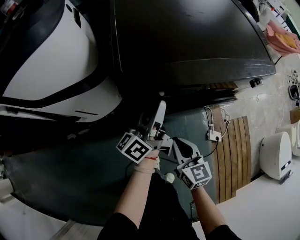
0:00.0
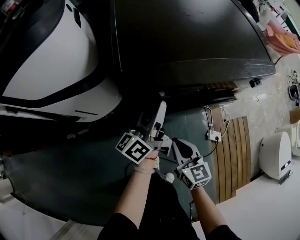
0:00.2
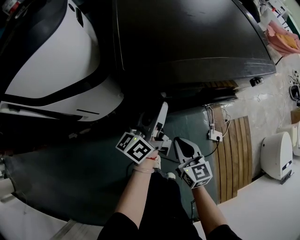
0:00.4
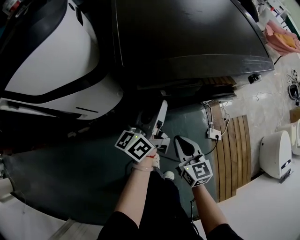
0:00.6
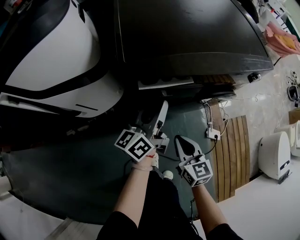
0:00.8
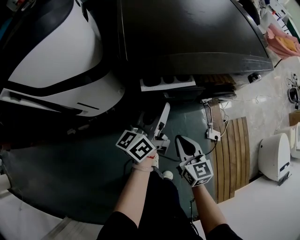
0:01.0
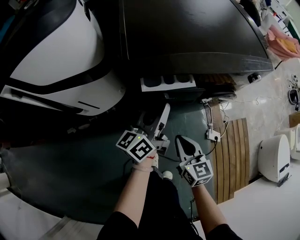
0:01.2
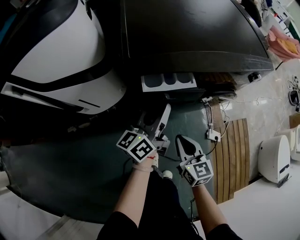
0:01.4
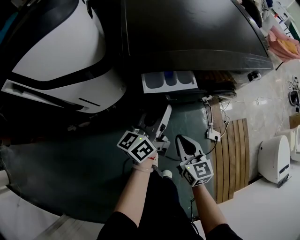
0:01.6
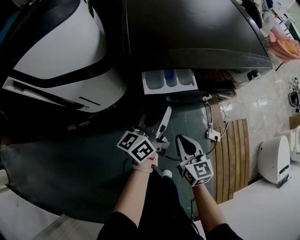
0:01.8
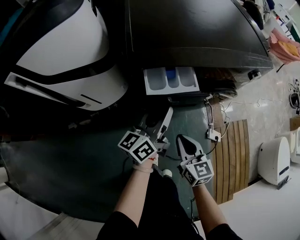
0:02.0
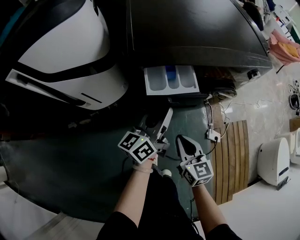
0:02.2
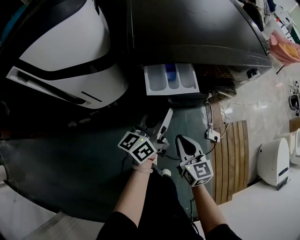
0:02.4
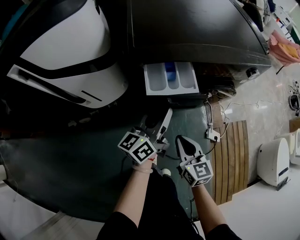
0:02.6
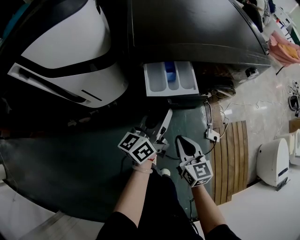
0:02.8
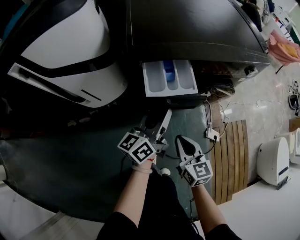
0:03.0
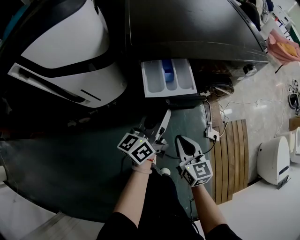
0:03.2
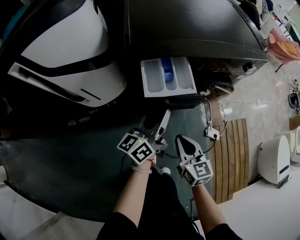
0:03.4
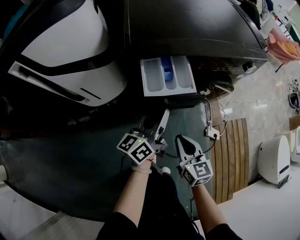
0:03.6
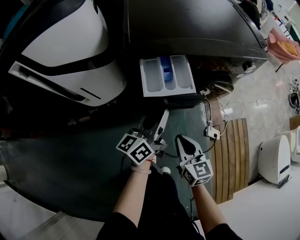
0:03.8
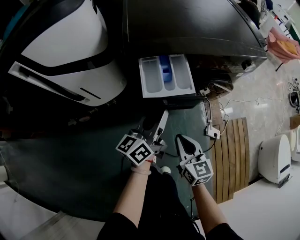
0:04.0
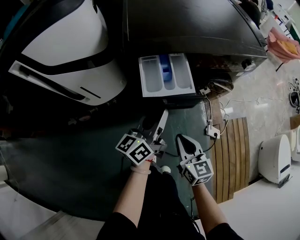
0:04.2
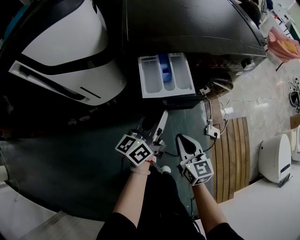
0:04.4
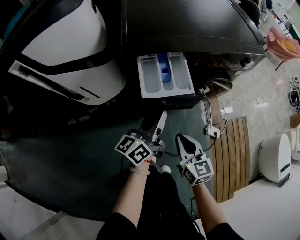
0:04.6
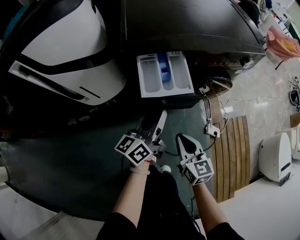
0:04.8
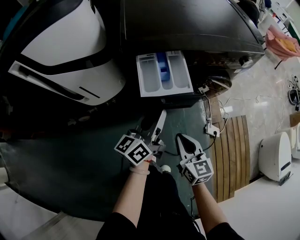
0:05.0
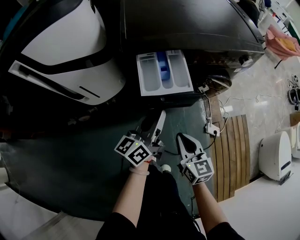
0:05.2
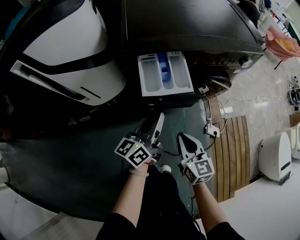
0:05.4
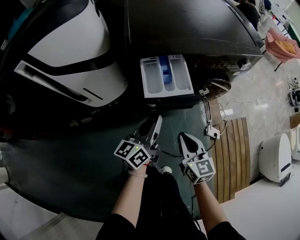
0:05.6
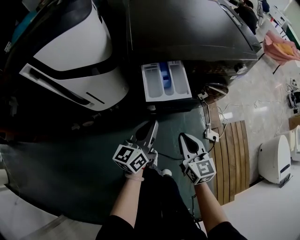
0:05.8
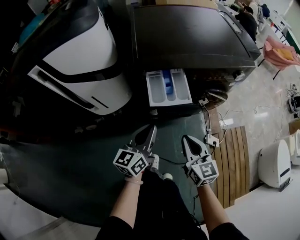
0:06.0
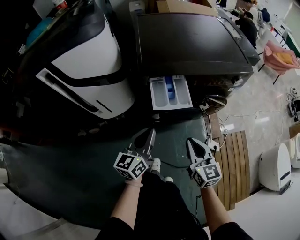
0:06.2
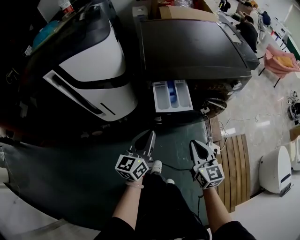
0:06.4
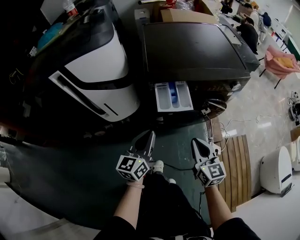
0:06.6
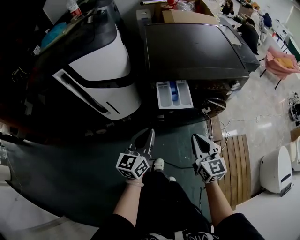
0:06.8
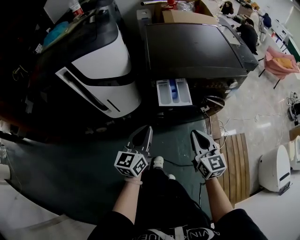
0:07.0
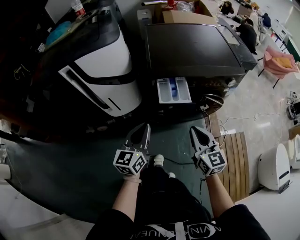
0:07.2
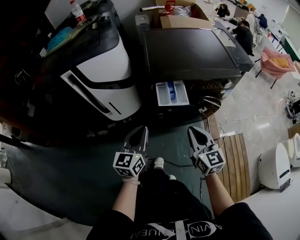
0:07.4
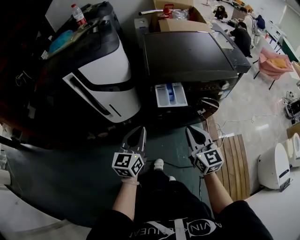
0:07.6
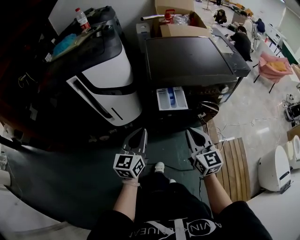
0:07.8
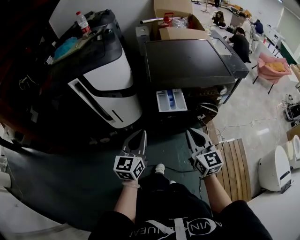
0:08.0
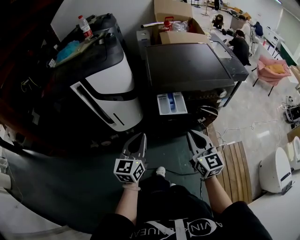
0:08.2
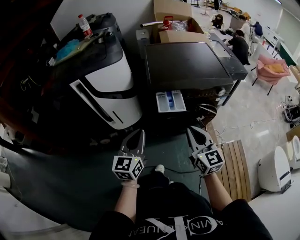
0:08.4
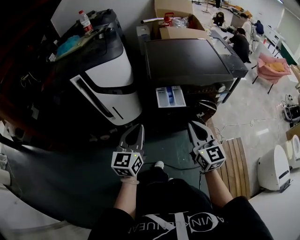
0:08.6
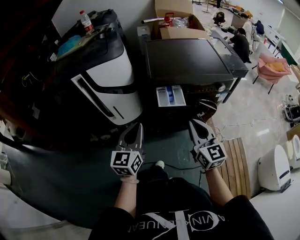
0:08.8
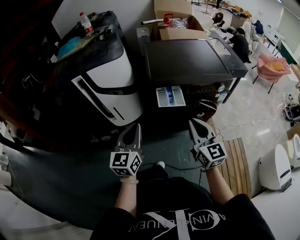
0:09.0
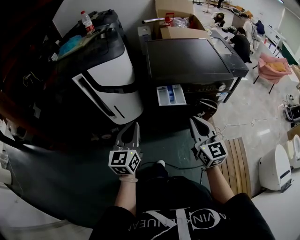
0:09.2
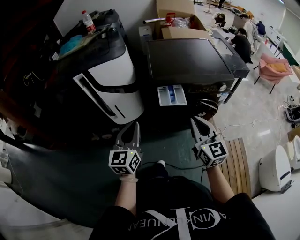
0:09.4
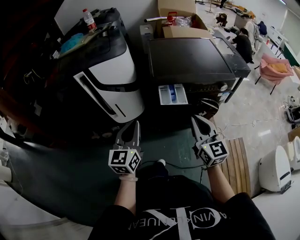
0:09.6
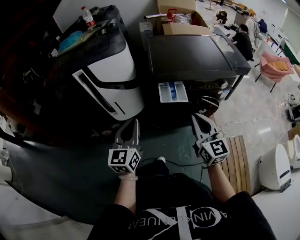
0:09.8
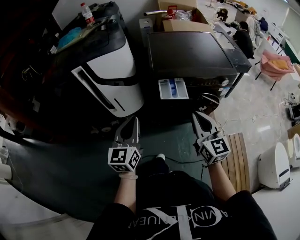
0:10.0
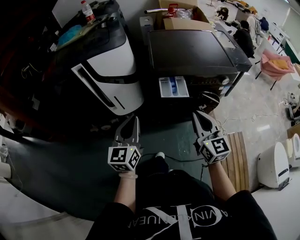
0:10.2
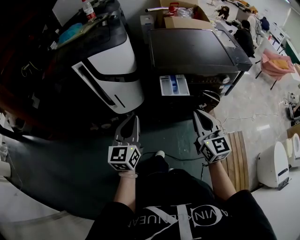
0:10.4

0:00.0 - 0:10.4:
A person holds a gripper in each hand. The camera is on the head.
0:00.0 - 0:01.4: The left gripper shifts some 5 cm backward.
0:01.4 - 0:03.0: The left gripper goes roughly 5 cm backward.
0:03.0 - 0:04.4: The grippers move only a little.
0:04.4 - 0:06.0: The right gripper shifts approximately 10 cm upward, while the left gripper ends up approximately 5 cm from where it was.
0:06.0 - 0:07.4: The right gripper goes about 15 cm upward. Meanwhile the left gripper shifts approximately 15 cm upward, backward and to the left.
0:07.4 - 0:09.0: Both grippers travel together upward, about 10 cm.
0:09.0 - 0:10.4: There are only small adjustments of the grippers.

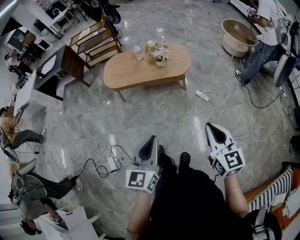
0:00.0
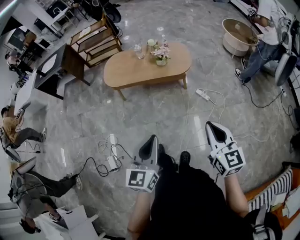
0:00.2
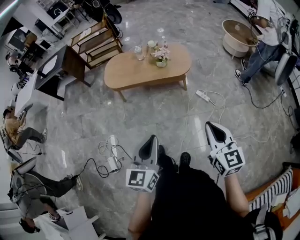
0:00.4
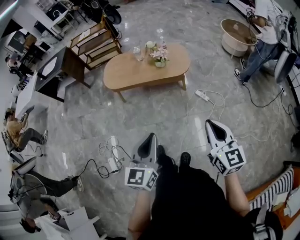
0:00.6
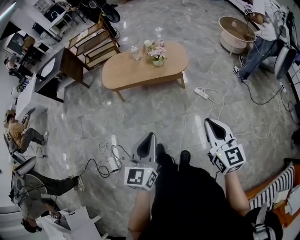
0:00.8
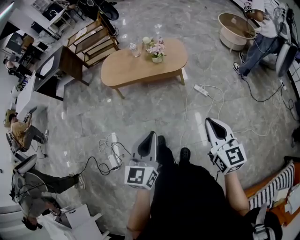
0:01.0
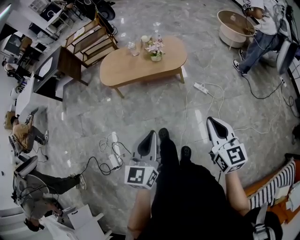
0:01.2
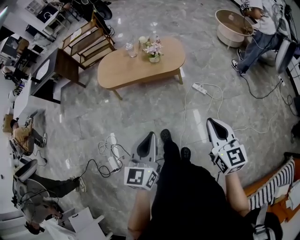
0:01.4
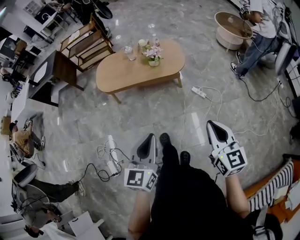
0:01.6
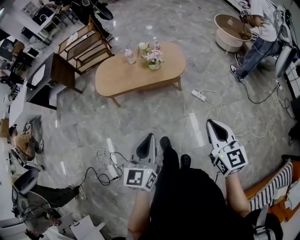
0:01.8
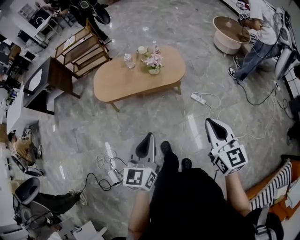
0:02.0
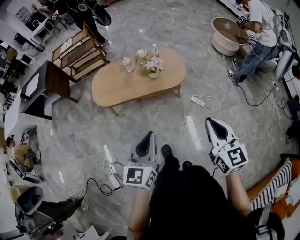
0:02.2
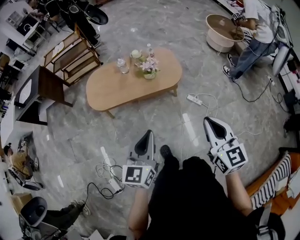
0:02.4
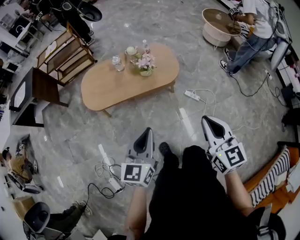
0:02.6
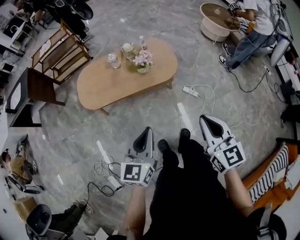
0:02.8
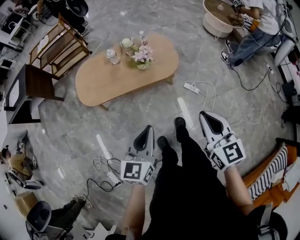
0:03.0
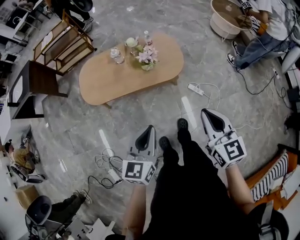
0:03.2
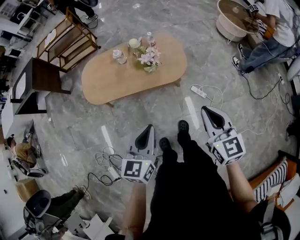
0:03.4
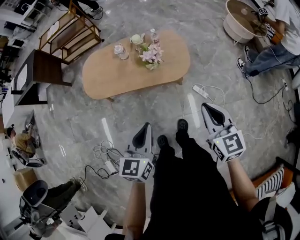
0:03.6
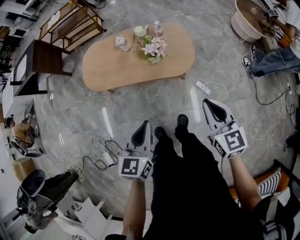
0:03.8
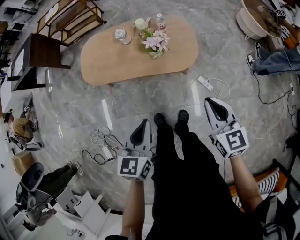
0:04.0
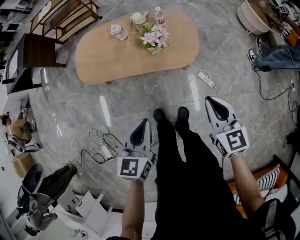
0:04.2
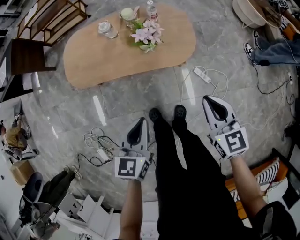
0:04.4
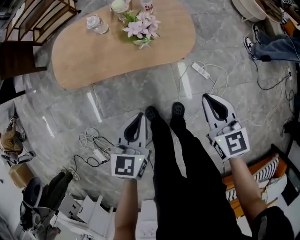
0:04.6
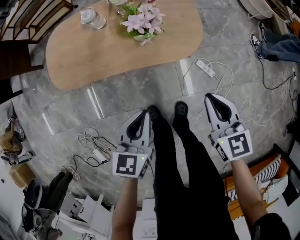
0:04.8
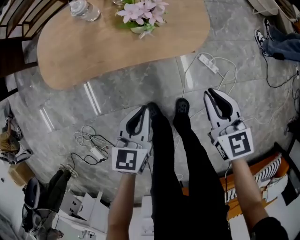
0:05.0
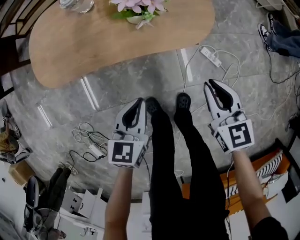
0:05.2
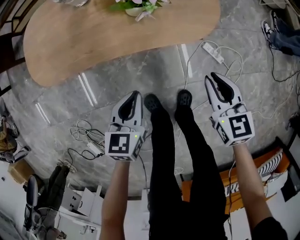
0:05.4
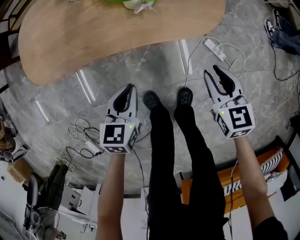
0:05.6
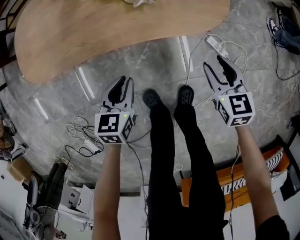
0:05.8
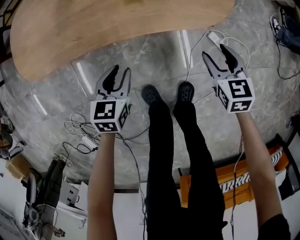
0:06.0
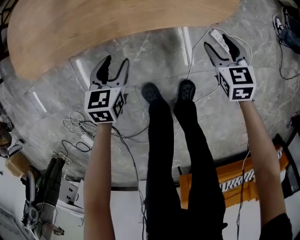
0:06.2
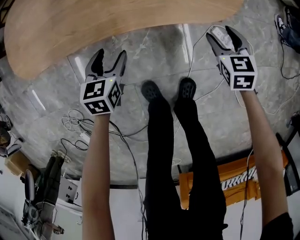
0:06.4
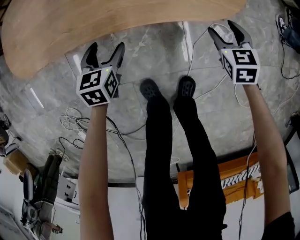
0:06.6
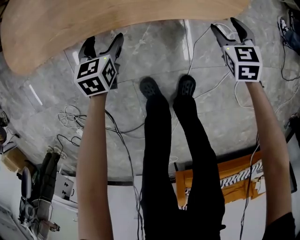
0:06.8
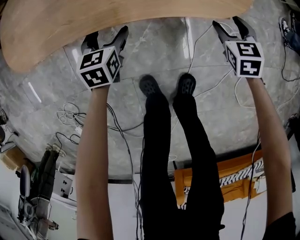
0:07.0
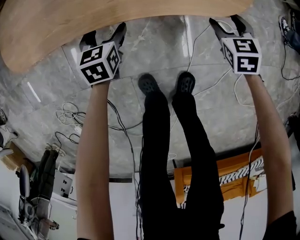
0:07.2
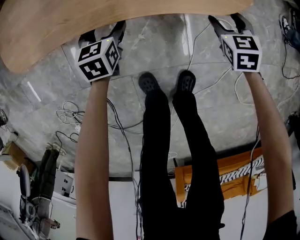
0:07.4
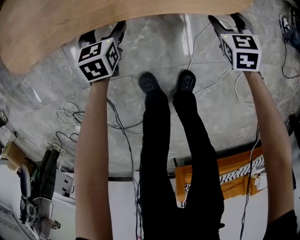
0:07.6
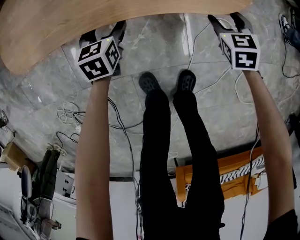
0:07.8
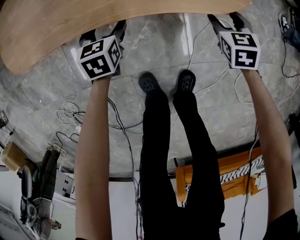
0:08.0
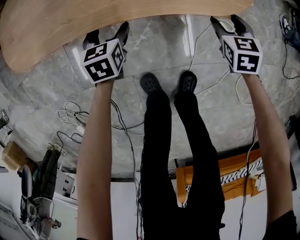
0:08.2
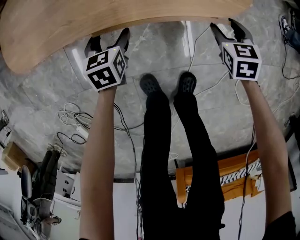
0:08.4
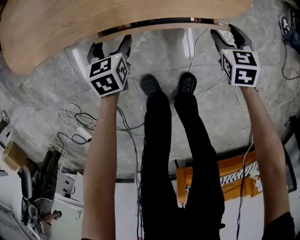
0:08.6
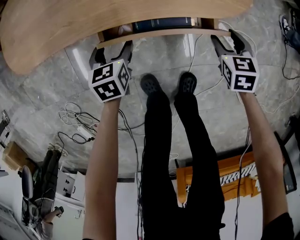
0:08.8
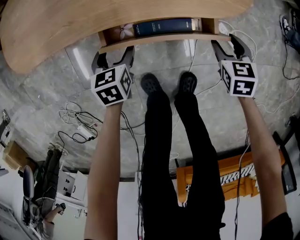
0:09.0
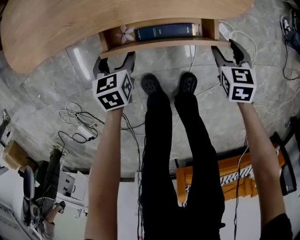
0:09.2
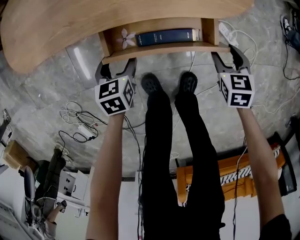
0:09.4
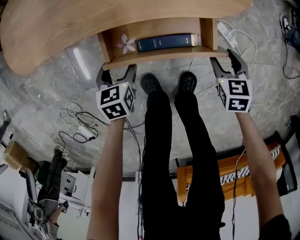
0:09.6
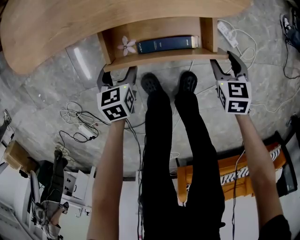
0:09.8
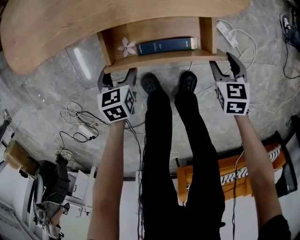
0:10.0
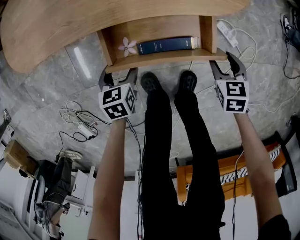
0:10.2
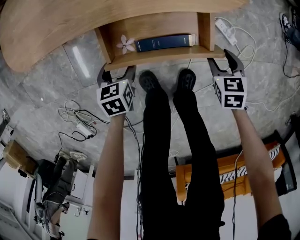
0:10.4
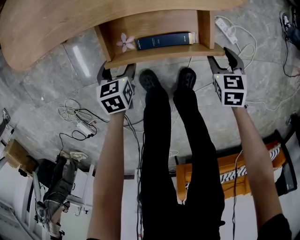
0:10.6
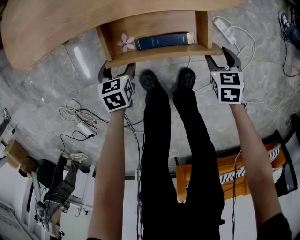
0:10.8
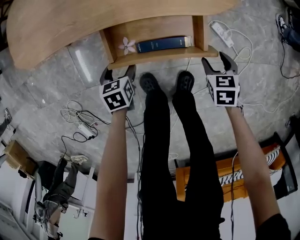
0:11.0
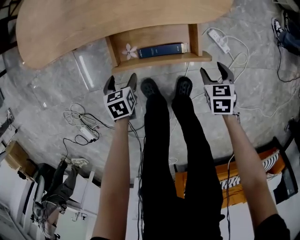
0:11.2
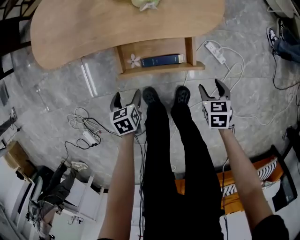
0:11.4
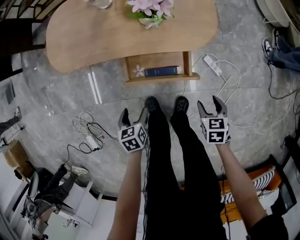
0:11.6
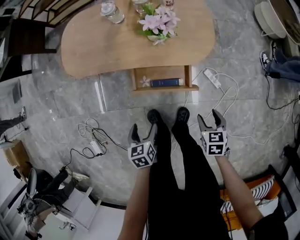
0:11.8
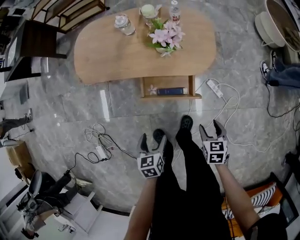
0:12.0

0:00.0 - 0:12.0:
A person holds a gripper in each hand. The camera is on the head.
0:00.0 - 0:01.6: The left gripper shifts some 5 cm forward.
0:01.6 - 0:03.0: The left gripper shifts about 25 cm forward. Meanwhile the right gripper travels forward and to the left by roughly 25 cm.
0:03.0 - 0:04.4: The left gripper goes approximately 20 cm downward and forward, while the right gripper goes some 25 cm forward and downward.
0:04.4 - 0:06.0: Both grippers move downward, approximately 40 cm. The right gripper opens up.
0:06.0 - 0:07.6: Both grippers travel together forward and downward, approximately 15 cm. The left gripper opens up.
0:07.6 - 0:09.0: The grippers both shift backward by approximately 10 cm.
0:09.0 - 0:10.4: Both grippers move backward, some 10 cm.
0:10.4 - 0:12.0: The left gripper heads upward and backward, covering roughly 35 cm. Meanwhile the right gripper goes some 25 cm upward.

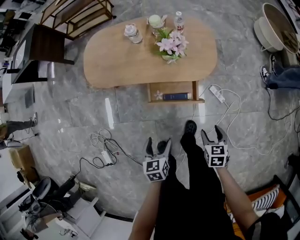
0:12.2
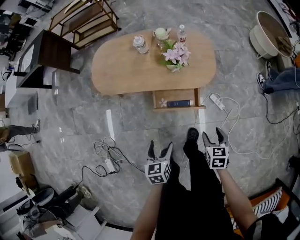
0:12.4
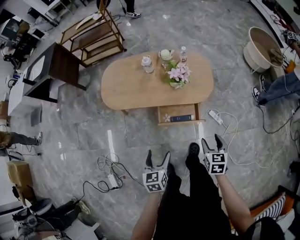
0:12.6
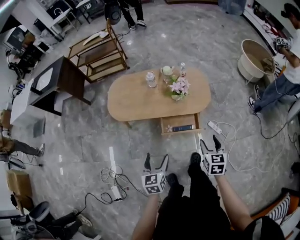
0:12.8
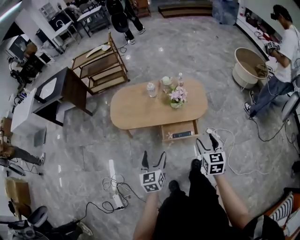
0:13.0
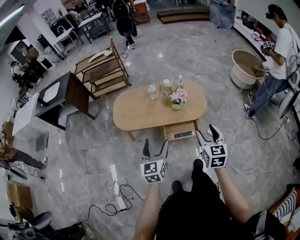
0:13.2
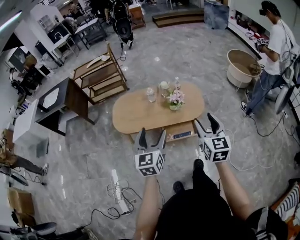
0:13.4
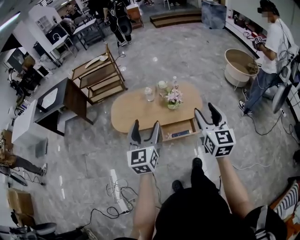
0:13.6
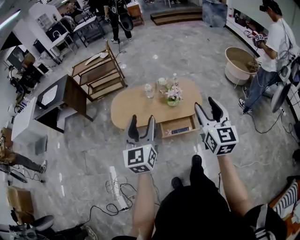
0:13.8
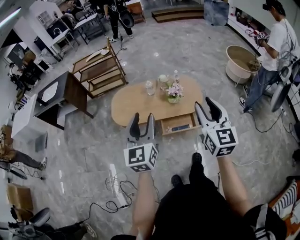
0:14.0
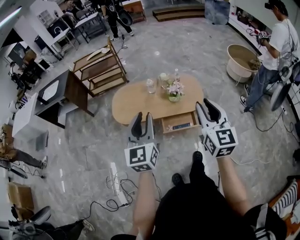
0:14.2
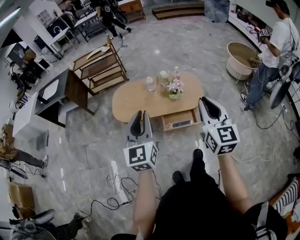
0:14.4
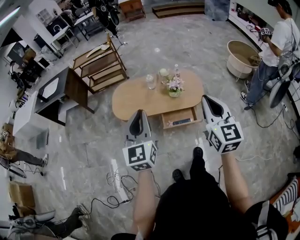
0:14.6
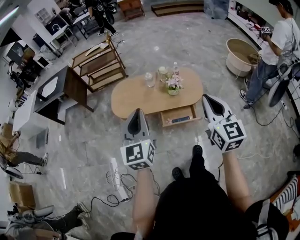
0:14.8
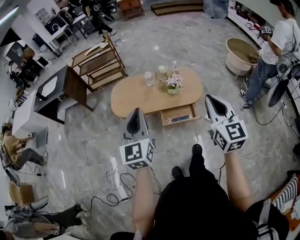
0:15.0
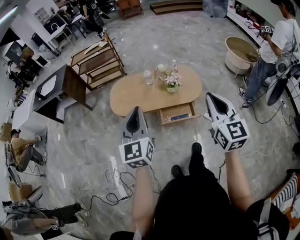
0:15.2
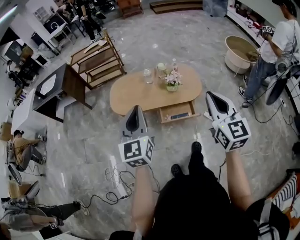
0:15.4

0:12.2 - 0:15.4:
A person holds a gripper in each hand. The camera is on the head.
0:12.2 - 0:13.8: Both grippers travel together upward, some 50 cm. The right gripper tilts its fingers about 60 degrees upward. The left gripper tilts its fingers some 50 degrees upward.
0:13.8 - 0:15.4: The left gripper closes up. The right gripper shifts some 5 cm backward, and closes its fingers.
